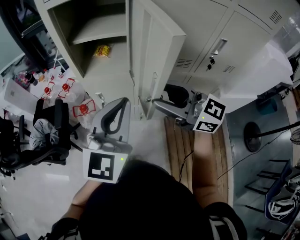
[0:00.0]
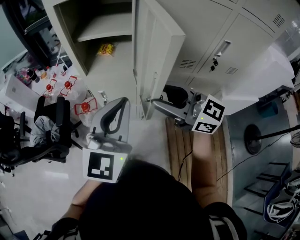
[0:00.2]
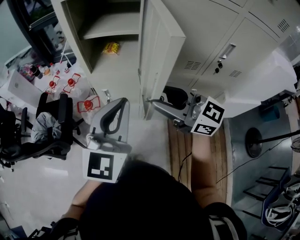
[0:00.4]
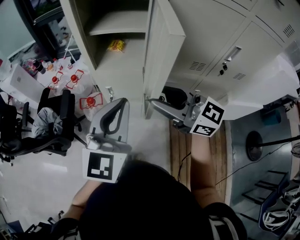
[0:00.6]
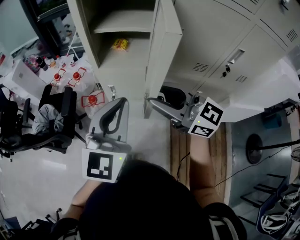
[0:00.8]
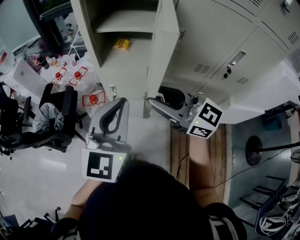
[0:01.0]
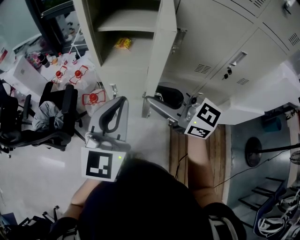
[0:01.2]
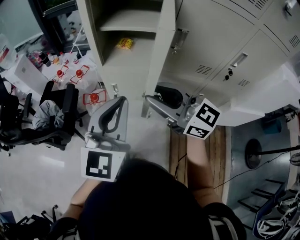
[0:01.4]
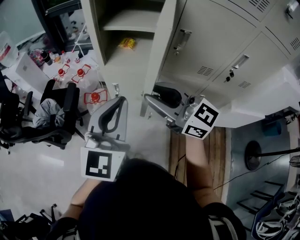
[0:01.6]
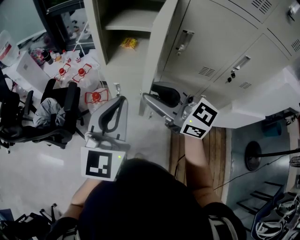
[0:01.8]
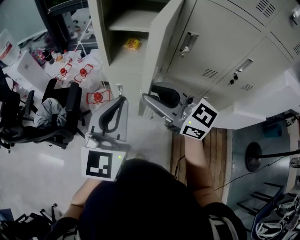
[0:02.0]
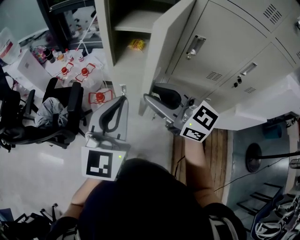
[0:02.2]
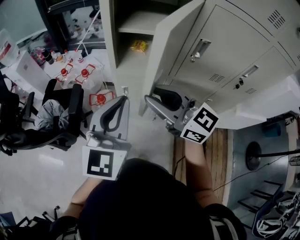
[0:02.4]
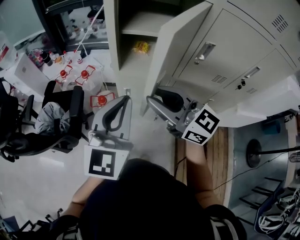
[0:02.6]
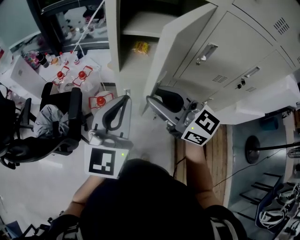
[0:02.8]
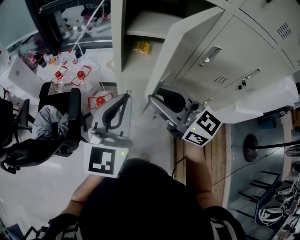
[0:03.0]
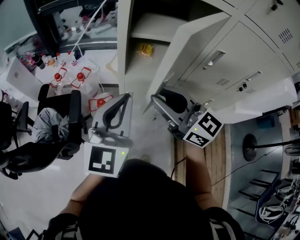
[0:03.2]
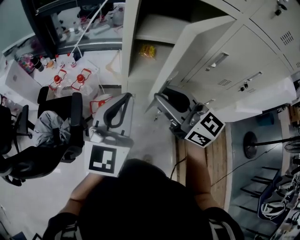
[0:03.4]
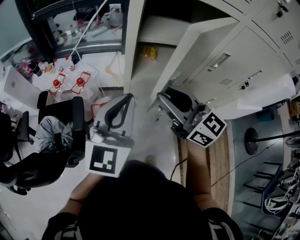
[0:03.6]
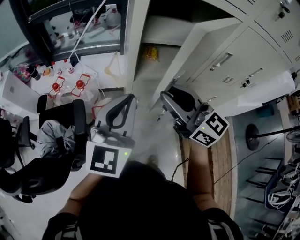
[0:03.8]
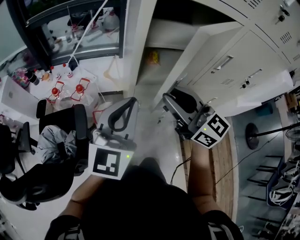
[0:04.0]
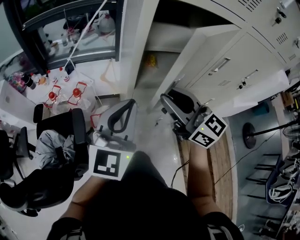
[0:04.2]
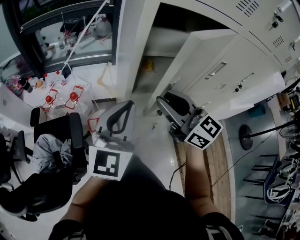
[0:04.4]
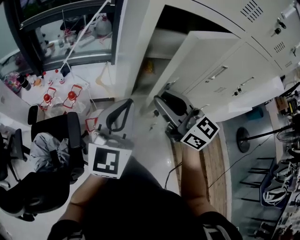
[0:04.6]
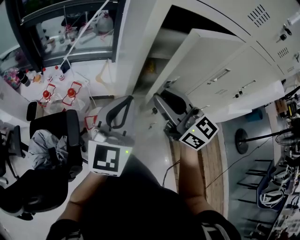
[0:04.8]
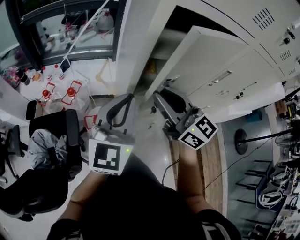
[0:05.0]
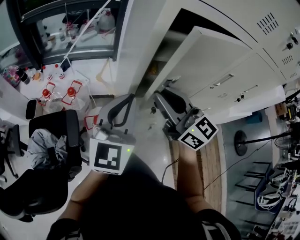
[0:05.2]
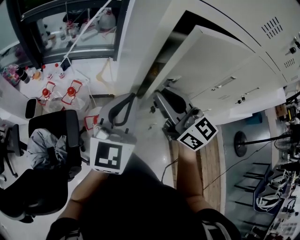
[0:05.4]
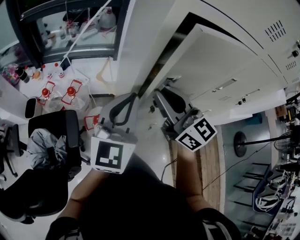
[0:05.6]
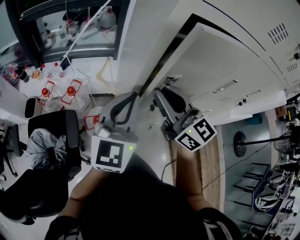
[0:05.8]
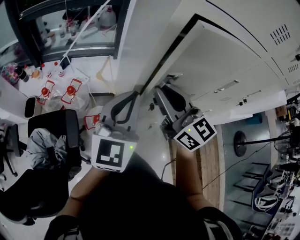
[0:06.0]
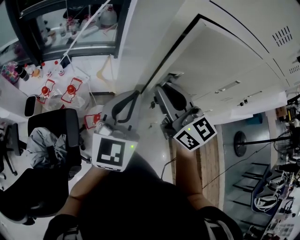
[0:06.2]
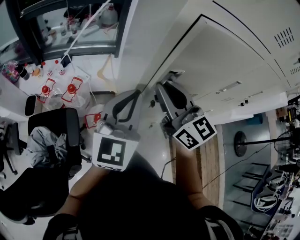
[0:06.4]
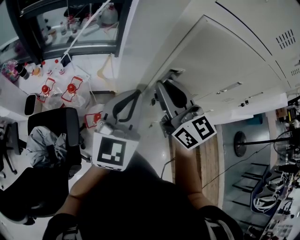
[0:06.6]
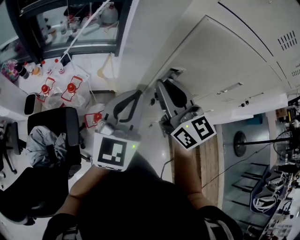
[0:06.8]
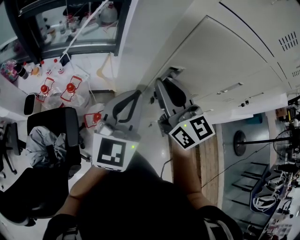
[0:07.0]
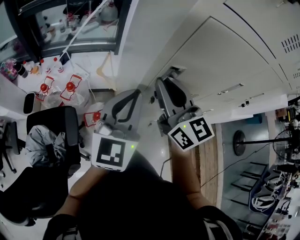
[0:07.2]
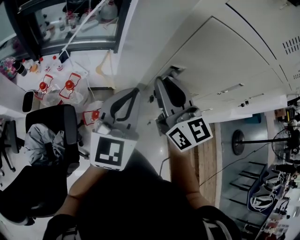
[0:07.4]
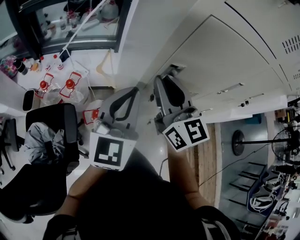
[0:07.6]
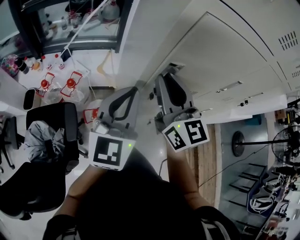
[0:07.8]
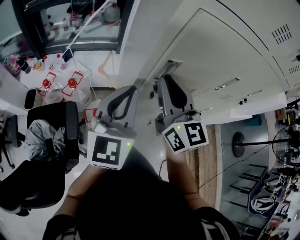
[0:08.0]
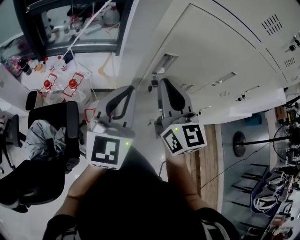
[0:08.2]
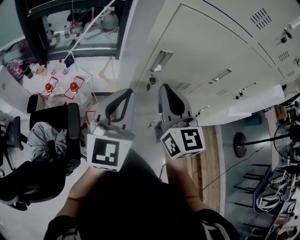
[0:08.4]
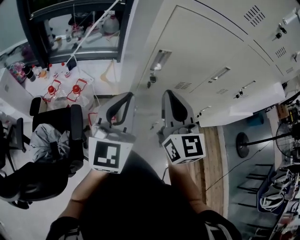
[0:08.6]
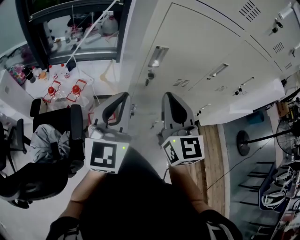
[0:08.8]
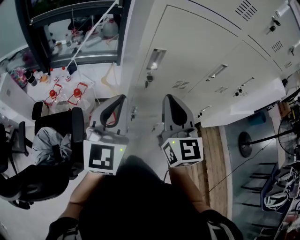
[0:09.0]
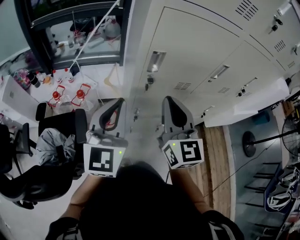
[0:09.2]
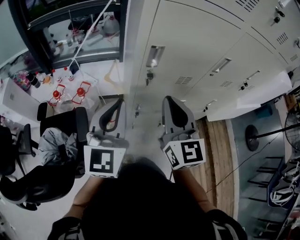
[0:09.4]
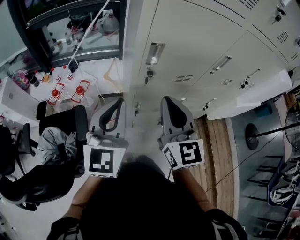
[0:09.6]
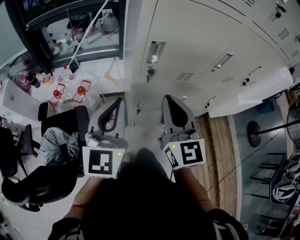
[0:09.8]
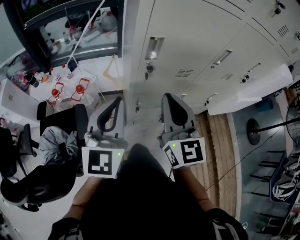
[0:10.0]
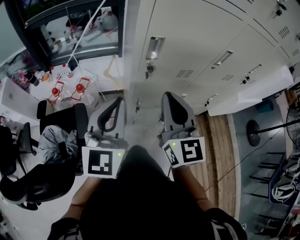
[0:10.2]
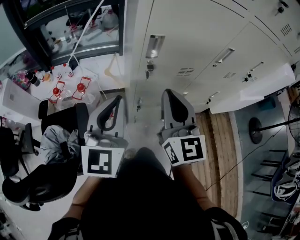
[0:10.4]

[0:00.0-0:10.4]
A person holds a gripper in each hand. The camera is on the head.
0:00.0 to 0:01.4: Both grippers move to the left, some 5 cm.
0:01.4 to 0:03.0: The left gripper is displaced forward and to the left by about 15 cm. The right gripper moves to the left and forward, about 15 cm.
0:03.0 to 0:04.4: The left gripper is displaced forward and to the left by some 10 cm. The right gripper heads forward, covering approximately 10 cm.
0:04.4 to 0:06.0: Both grippers move forward, approximately 10 cm.
0:06.0 to 0:07.4: The grippers move only a little.
0:07.4 to 0:09.0: The grippers both shift backward by some 10 cm.
0:09.0 to 0:10.4: There are only small adjustments of the grippers.

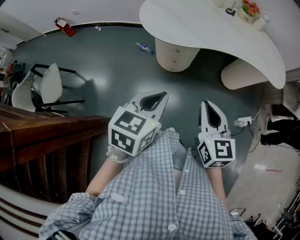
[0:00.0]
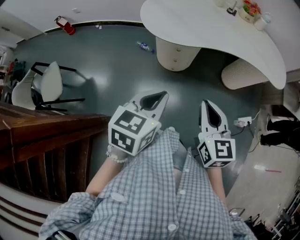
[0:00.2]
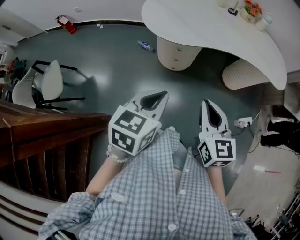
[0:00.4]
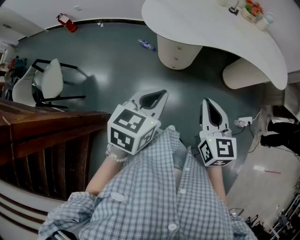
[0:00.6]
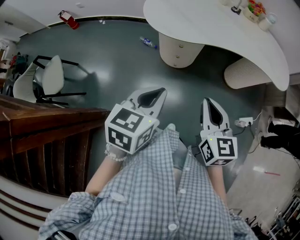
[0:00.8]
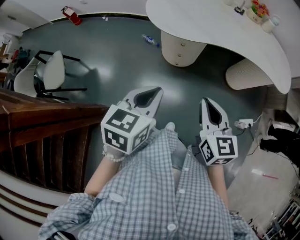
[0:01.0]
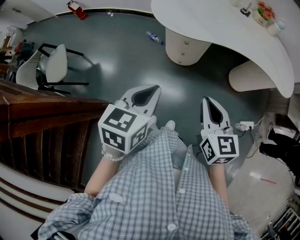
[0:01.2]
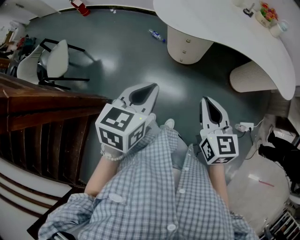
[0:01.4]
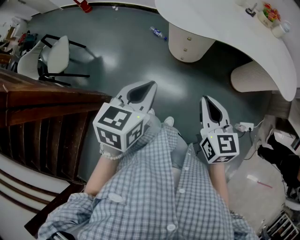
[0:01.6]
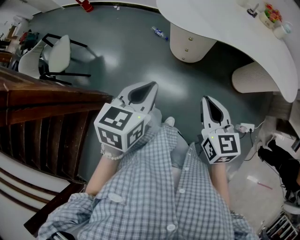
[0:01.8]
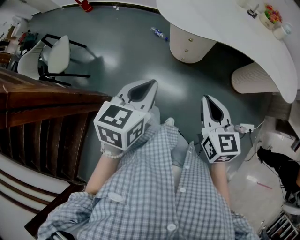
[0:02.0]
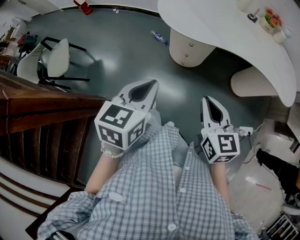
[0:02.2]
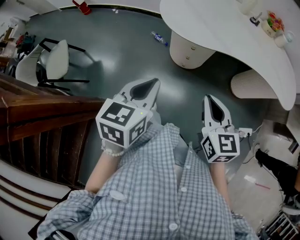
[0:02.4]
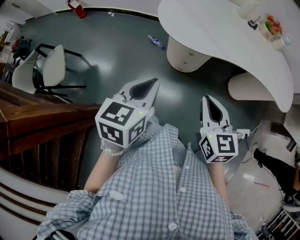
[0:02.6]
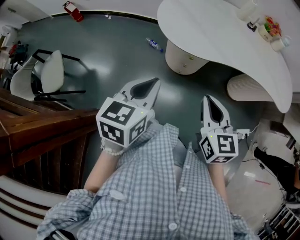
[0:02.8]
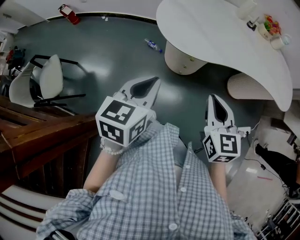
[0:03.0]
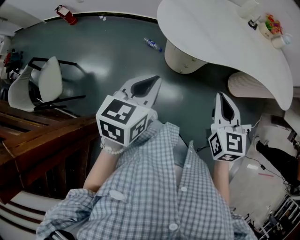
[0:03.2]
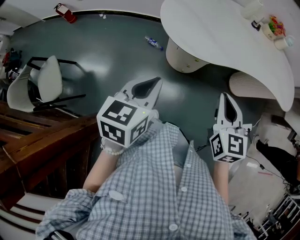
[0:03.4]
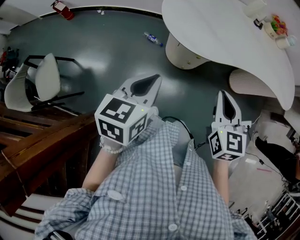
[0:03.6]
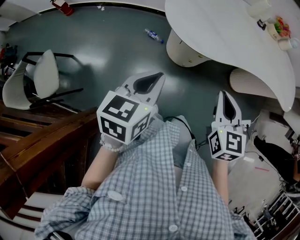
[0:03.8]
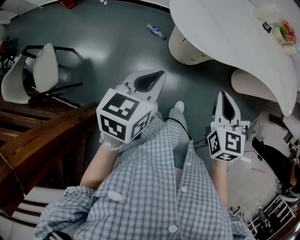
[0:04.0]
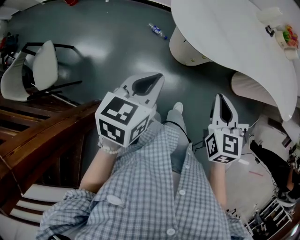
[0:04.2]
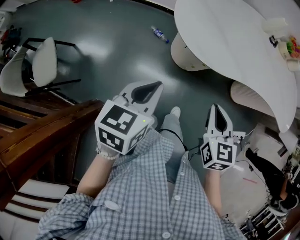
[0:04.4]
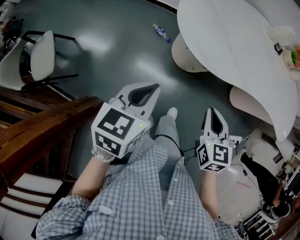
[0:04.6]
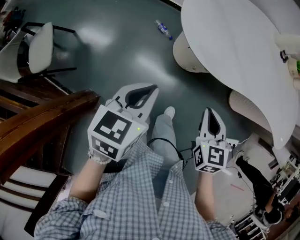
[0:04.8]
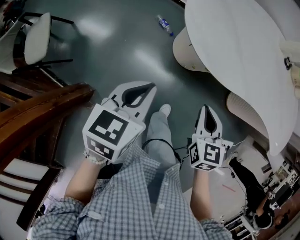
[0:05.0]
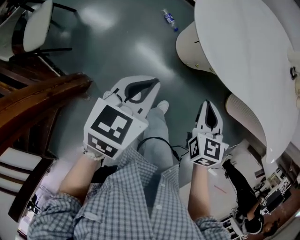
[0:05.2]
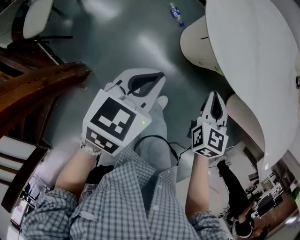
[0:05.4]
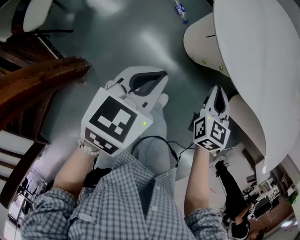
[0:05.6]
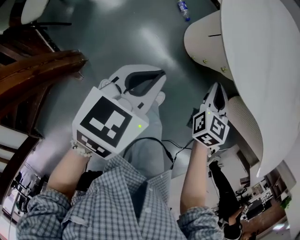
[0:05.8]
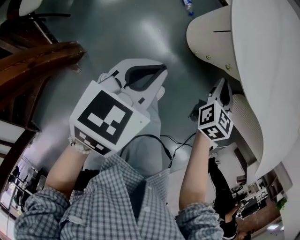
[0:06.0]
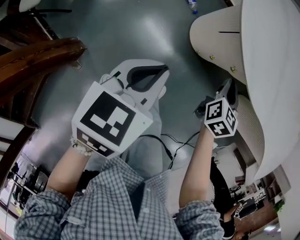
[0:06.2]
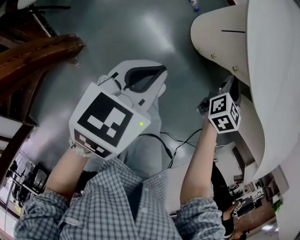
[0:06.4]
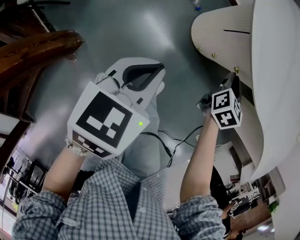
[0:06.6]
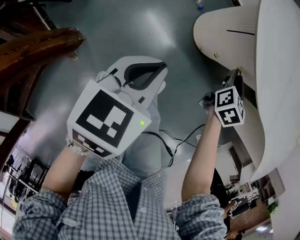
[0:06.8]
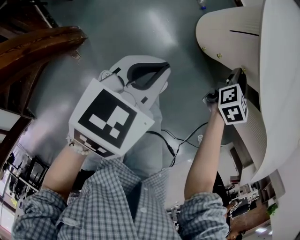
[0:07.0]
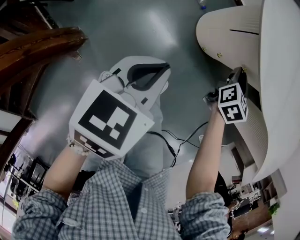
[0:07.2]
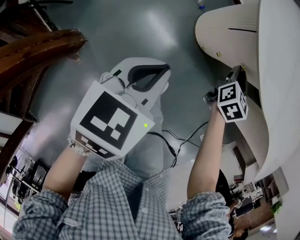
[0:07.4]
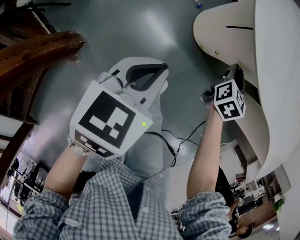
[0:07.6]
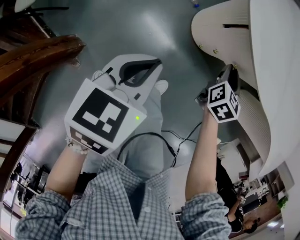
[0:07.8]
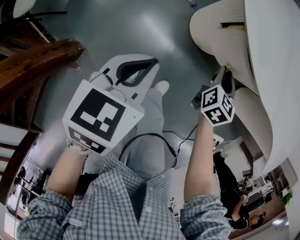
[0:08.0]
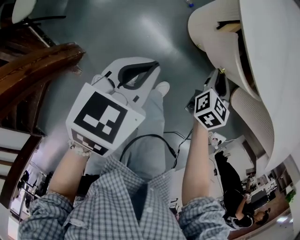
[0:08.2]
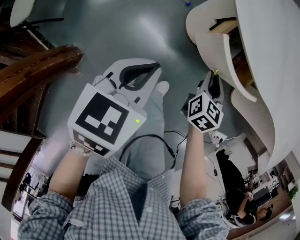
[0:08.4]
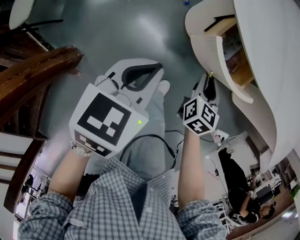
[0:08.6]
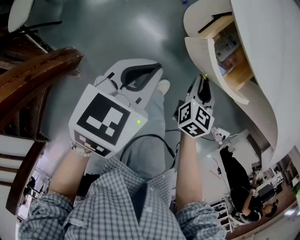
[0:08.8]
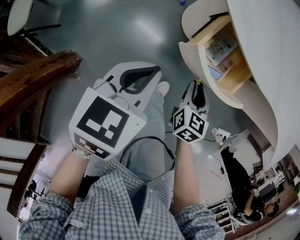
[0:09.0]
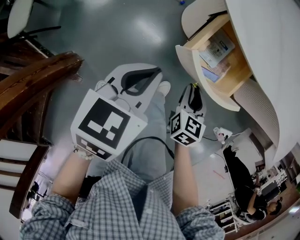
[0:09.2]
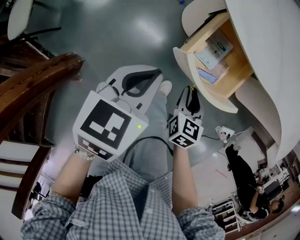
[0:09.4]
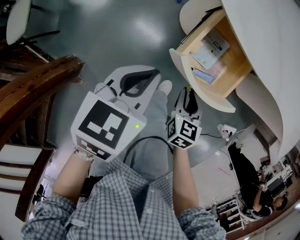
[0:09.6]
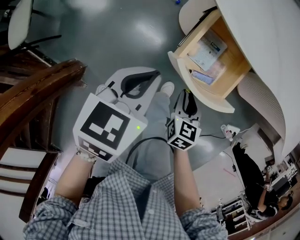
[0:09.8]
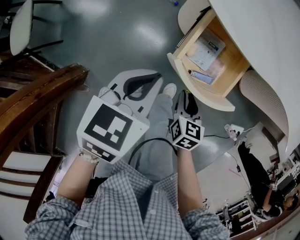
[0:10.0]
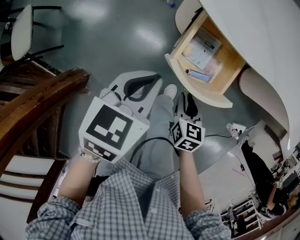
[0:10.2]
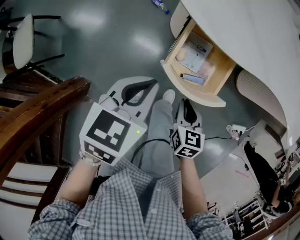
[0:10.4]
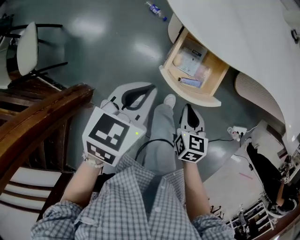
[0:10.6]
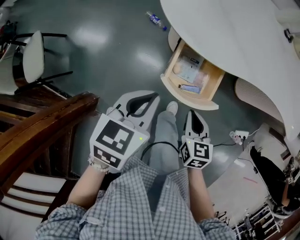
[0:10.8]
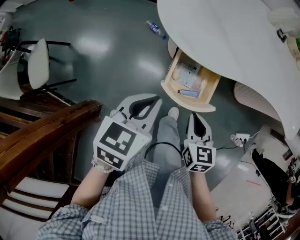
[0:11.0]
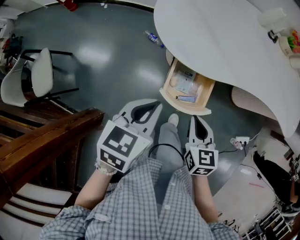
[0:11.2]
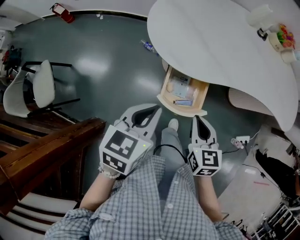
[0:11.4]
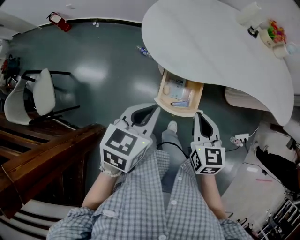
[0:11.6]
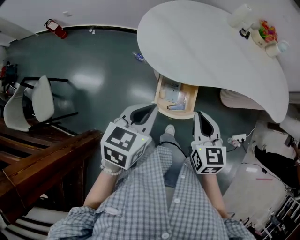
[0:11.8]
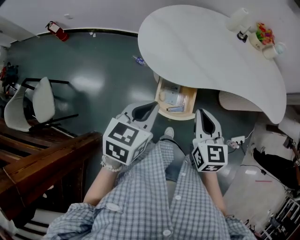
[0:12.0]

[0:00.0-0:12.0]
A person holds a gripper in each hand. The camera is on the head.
0:00.0 to 0:01.6: The grippers stay close to where they were, moving slightly.
0:01.6 to 0:03.0: The grippers both shift forward and to the left by roughly 15 cm.
0:03.0 to 0:04.4: The left gripper heads downward and to the left, covering approximately 10 cm, while the right gripper shifts roughly 10 cm downward and forward.
0:04.4 to 0:06.0: The left gripper heads downward, covering about 15 cm; the right gripper travels downward and forward by some 25 cm.
0:06.0 to 0:07.6: The right gripper moves downward, about 5 cm. The left gripper moves roughly 5 cm.
0:07.6 to 0:09.0: The right gripper heads backward, covering some 15 cm.
0:09.0 to 0:10.4: The right gripper is displaced backward by roughly 5 cm; the left gripper changes place by approximately 5 cm.
0:10.4 to 0:12.0: The left gripper moves upward, approximately 20 cm. The right gripper is displaced upward by about 30 cm, and swivels approximately 20 degrees.

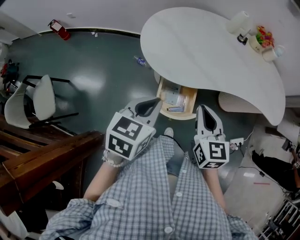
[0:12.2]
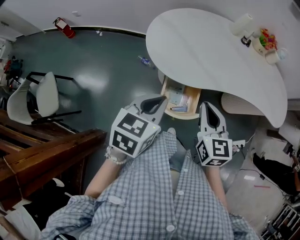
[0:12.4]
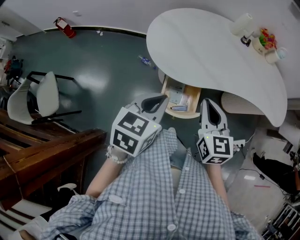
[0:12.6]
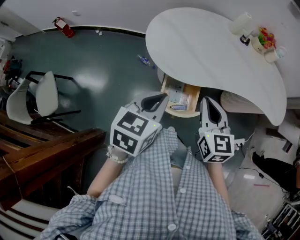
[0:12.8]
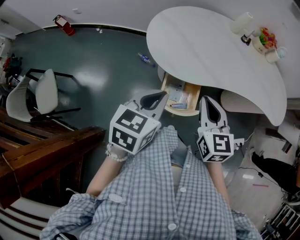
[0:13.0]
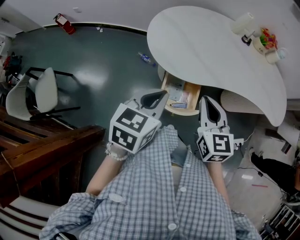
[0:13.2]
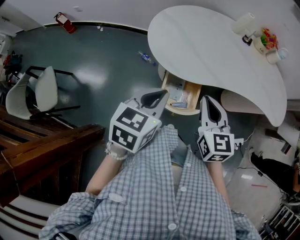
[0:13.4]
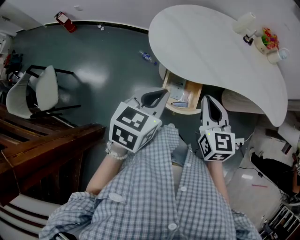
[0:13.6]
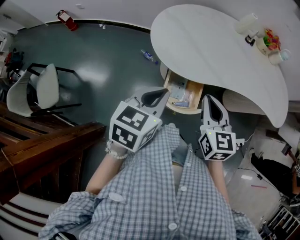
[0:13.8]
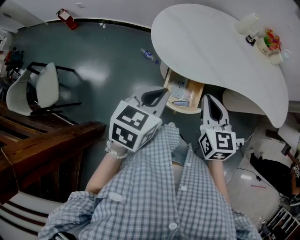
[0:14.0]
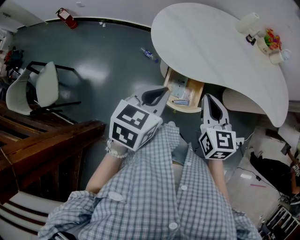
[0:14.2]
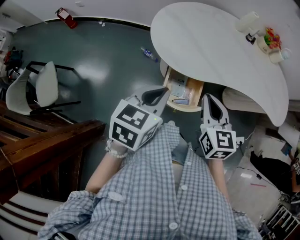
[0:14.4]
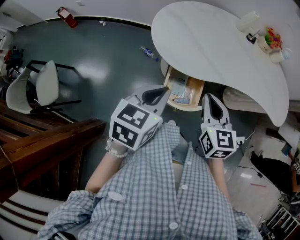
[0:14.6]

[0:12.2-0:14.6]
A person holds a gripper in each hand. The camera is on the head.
0:12.2 to 0:13.4: The grippers move only a little.
0:13.4 to 0:14.6: The two grippers keep their place.
